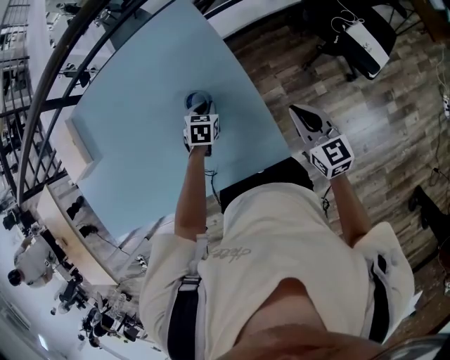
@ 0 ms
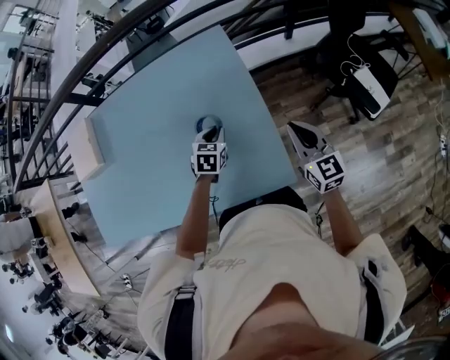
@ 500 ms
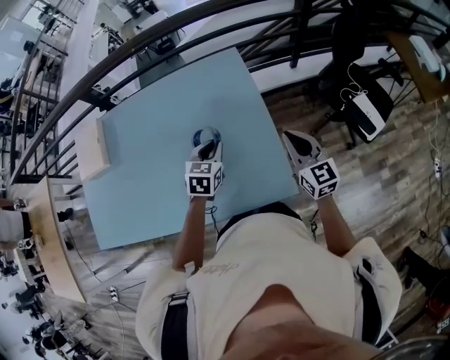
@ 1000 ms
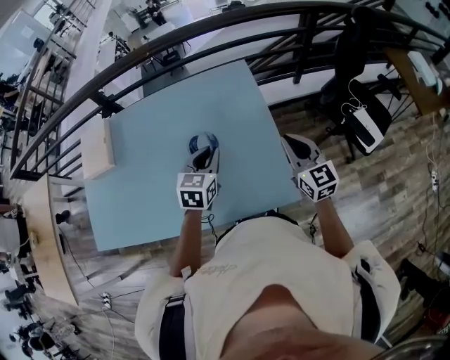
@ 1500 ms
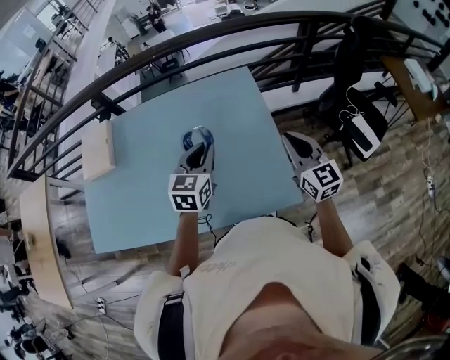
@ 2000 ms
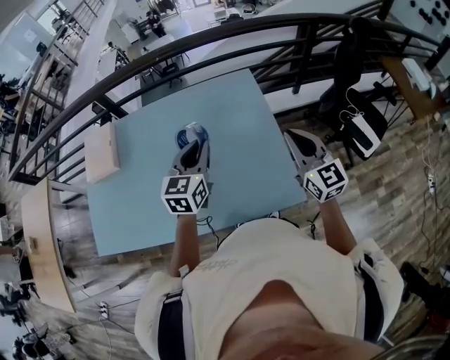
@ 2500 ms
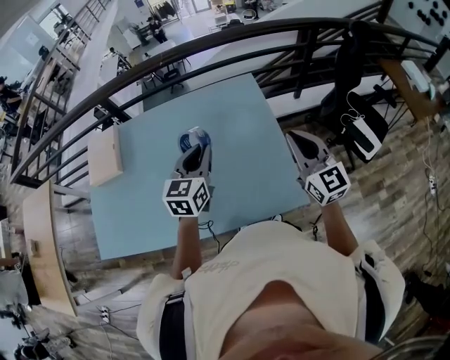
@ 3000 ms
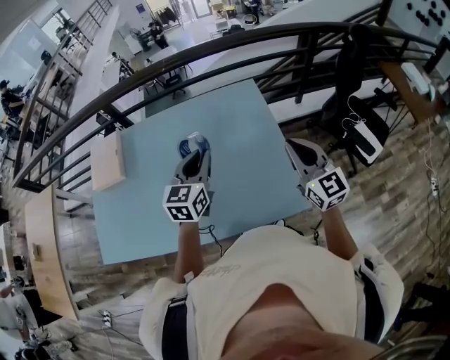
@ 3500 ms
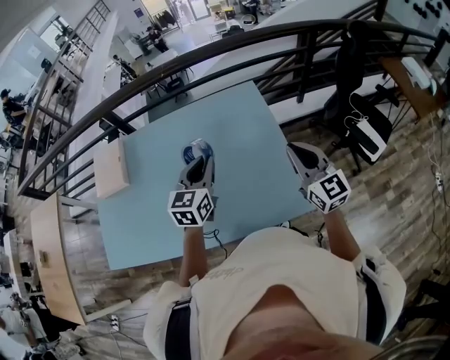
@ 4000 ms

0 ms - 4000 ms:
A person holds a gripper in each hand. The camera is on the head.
0 ms - 2000 ms: The left gripper moves upward and to the left, about 35 cm, and tips its fingers upward by roughly 40 degrees; the right gripper is displaced upward and to the left by approximately 20 cm, and turns by about 20 degrees.
2000 ms - 4000 ms: The grippers move only a little.

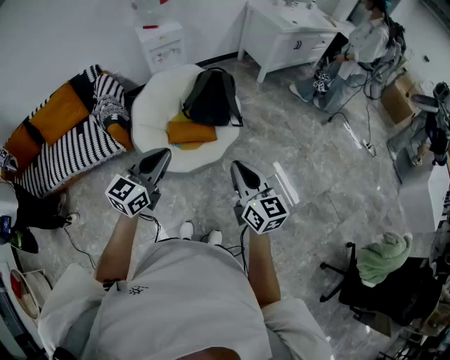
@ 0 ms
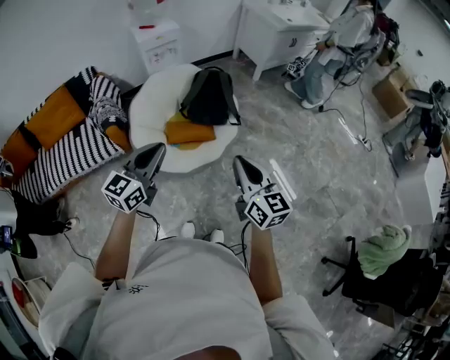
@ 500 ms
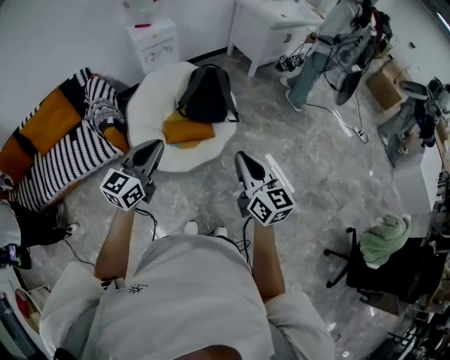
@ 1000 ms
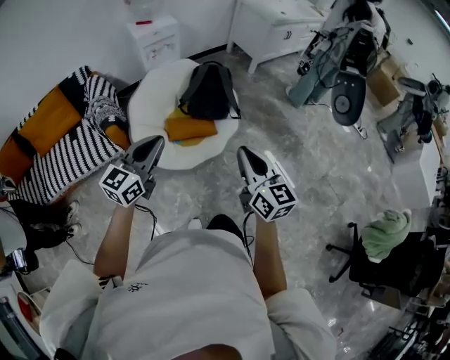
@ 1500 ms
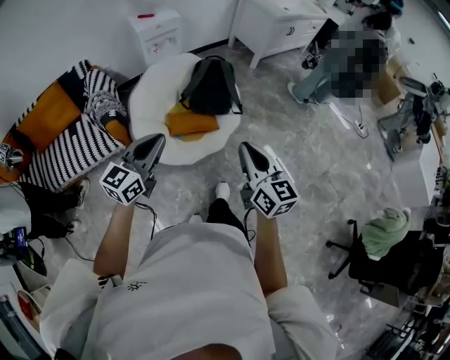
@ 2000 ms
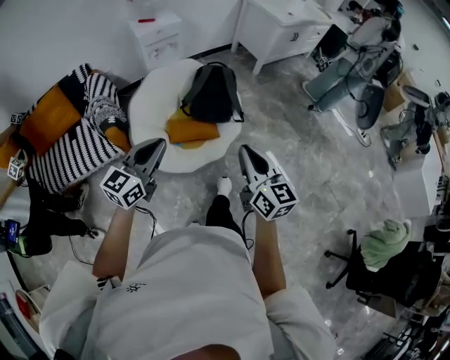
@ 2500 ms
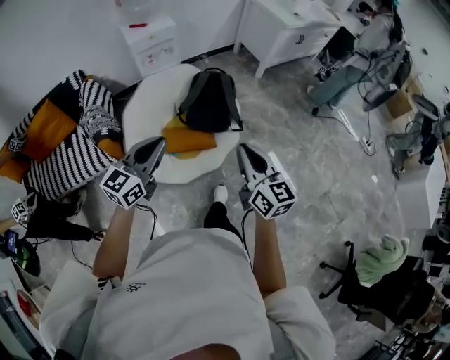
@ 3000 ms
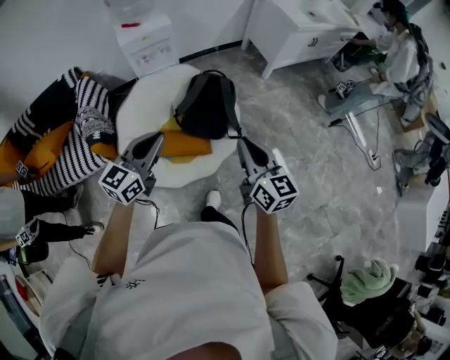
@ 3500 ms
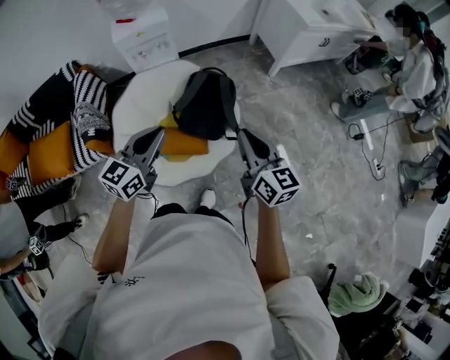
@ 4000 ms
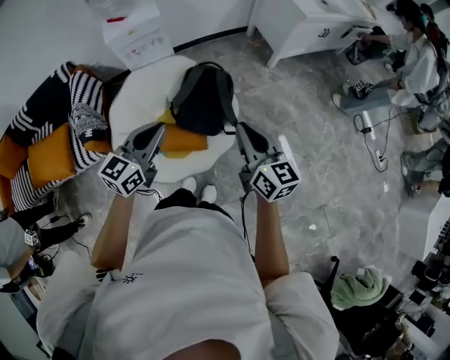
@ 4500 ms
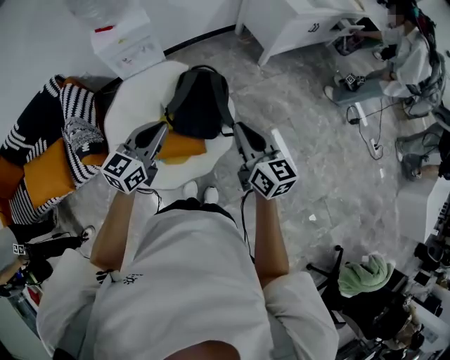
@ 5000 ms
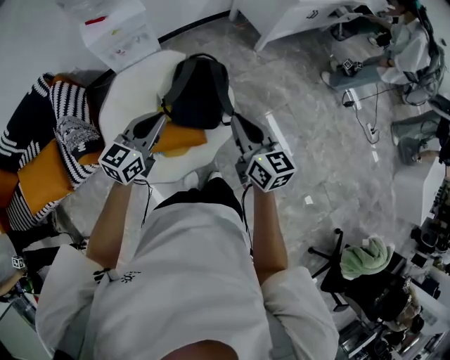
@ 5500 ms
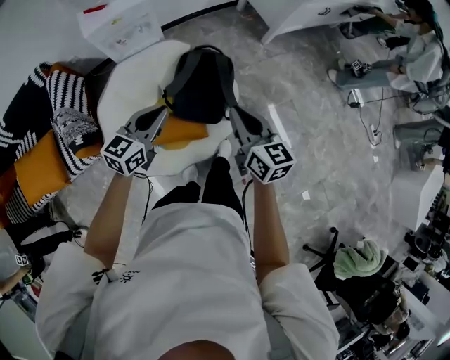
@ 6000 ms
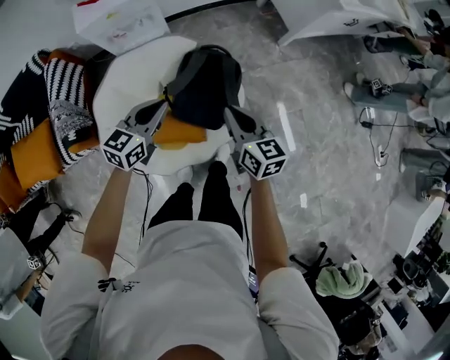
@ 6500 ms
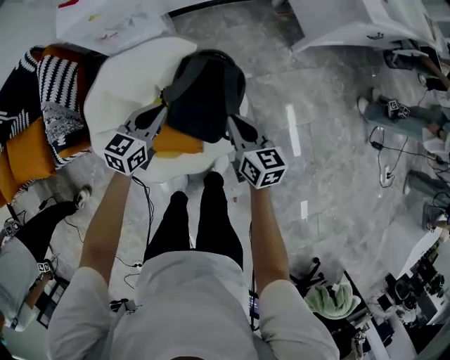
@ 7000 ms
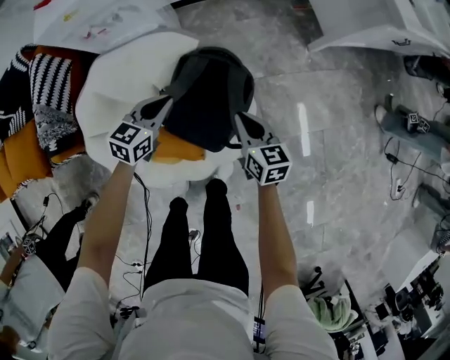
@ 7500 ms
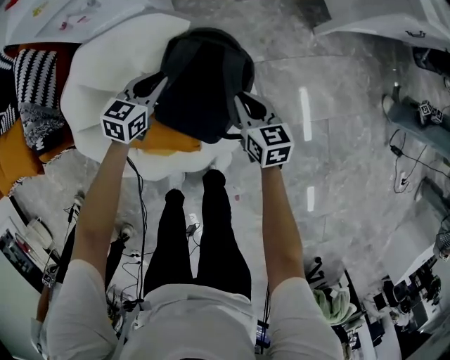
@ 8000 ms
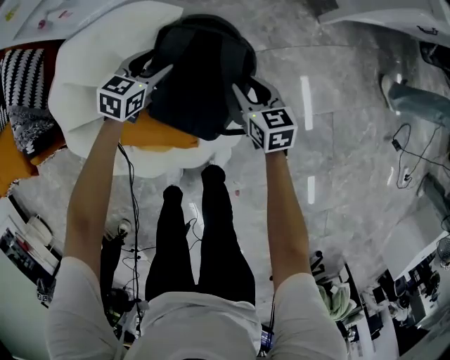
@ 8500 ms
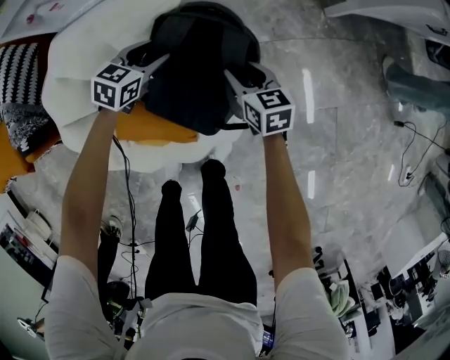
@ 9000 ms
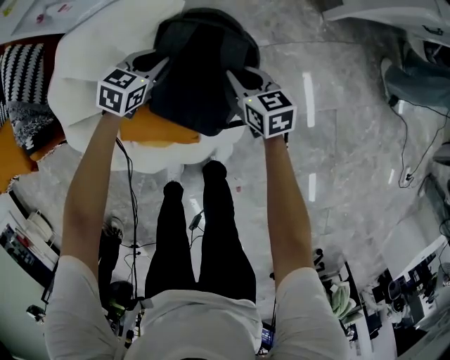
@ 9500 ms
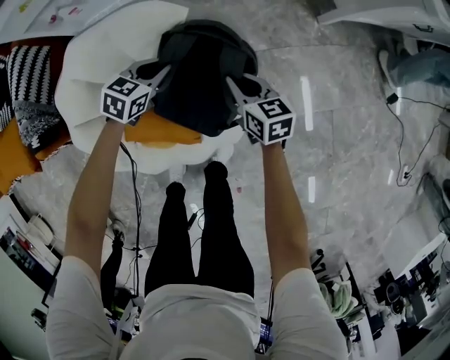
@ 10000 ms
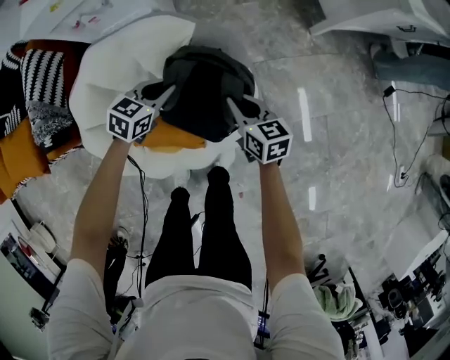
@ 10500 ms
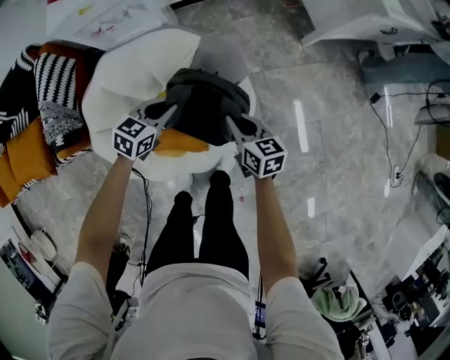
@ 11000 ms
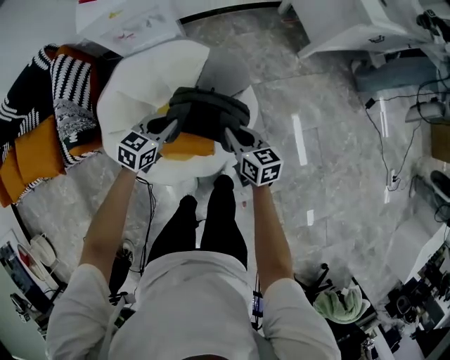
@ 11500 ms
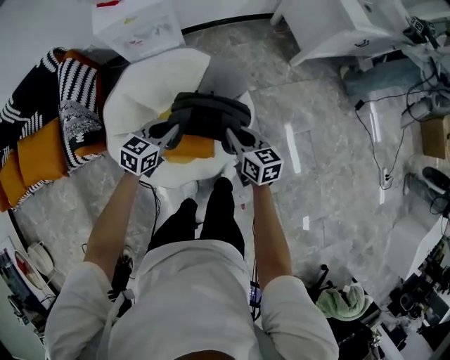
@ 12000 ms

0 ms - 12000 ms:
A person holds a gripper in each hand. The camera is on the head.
0 ms - 2000 ms: The two grippers go some 10 cm to the left.
2000 ms - 4000 ms: The pair of grippers is taken forward, about 40 cm.
4000 ms - 6000 ms: The right gripper moves forward, to the left and downward, about 15 cm, while the left gripper goes roughly 20 cm forward, downward and to the left.
6000 ms - 8000 ms: The grippers both shift downward and forward by some 50 cm. The right gripper turns by approximately 20 degrees. The left gripper changes its angle by some 20 degrees.
8000 ms - 10000 ms: The left gripper opens, then closes again. The right gripper travels downward and back again, approximately 10 cm each way, and opens, then closes again.
10000 ms - 12000 ms: Both grippers travel together upward and backward, about 30 cm.

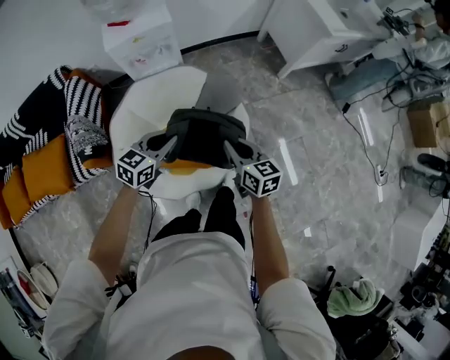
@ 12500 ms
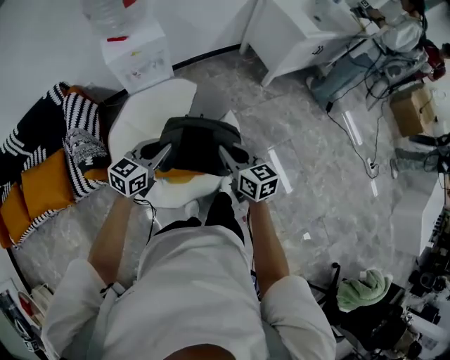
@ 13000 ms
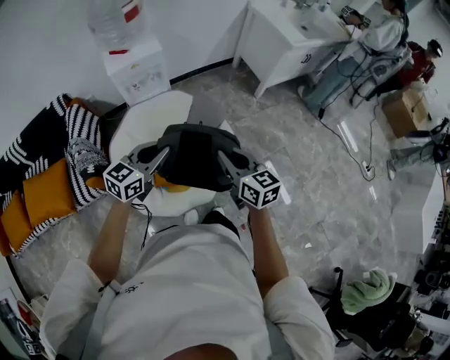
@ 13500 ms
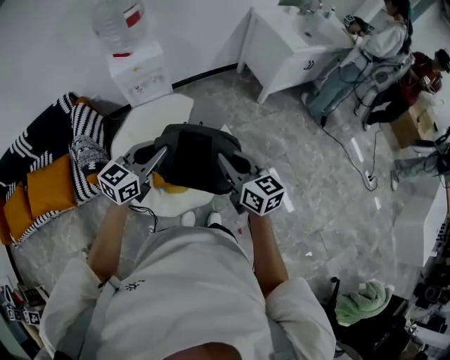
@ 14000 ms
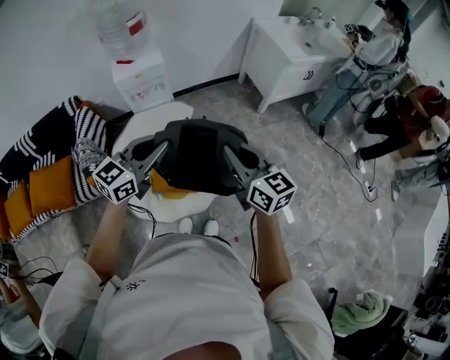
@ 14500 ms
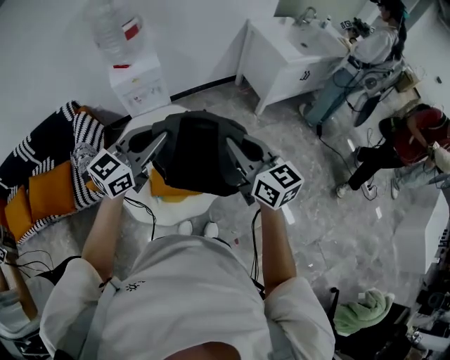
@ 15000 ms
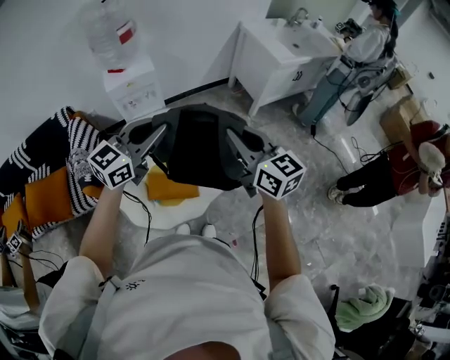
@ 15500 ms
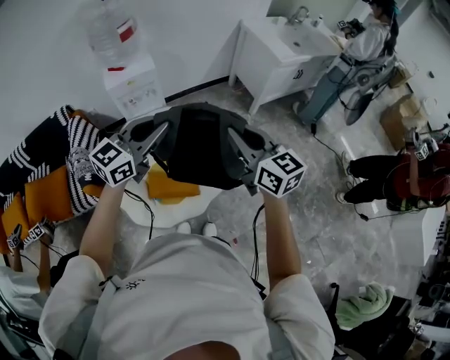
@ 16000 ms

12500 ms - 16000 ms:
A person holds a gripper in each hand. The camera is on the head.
12500 ms - 14500 ms: Both grippers travel together upward, about 25 cm. The left gripper turns by about 20 degrees. Meanwhile the right gripper swivels roughly 20 degrees.
14500 ms - 16000 ms: The right gripper changes place by about 5 cm, while the left gripper is displaced forward by approximately 5 cm.

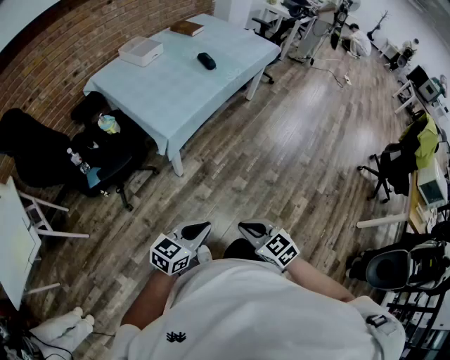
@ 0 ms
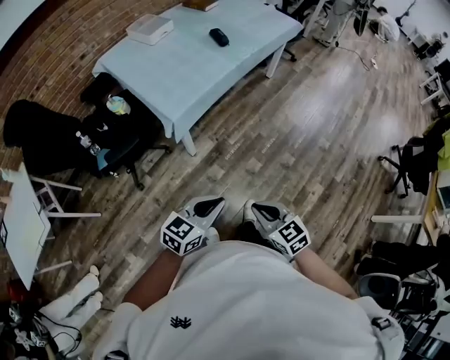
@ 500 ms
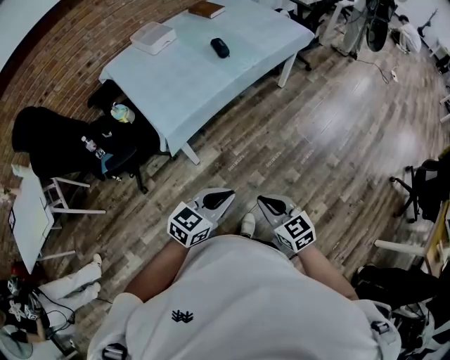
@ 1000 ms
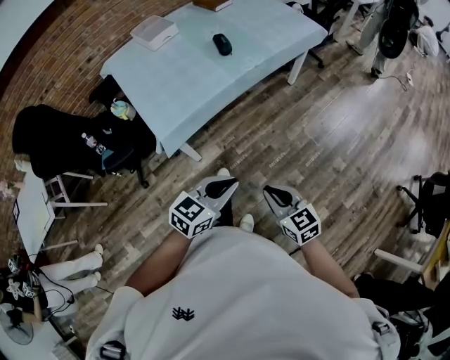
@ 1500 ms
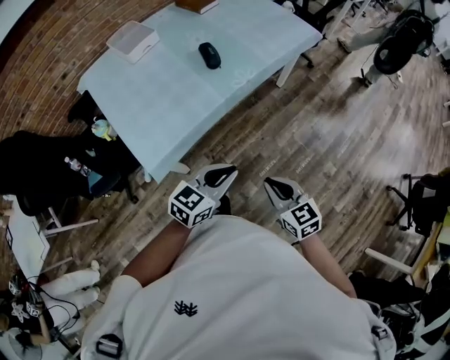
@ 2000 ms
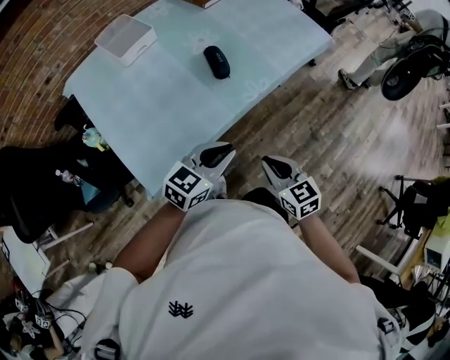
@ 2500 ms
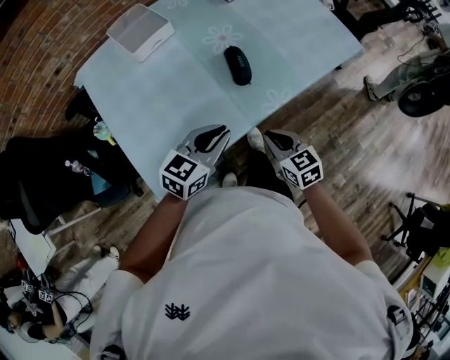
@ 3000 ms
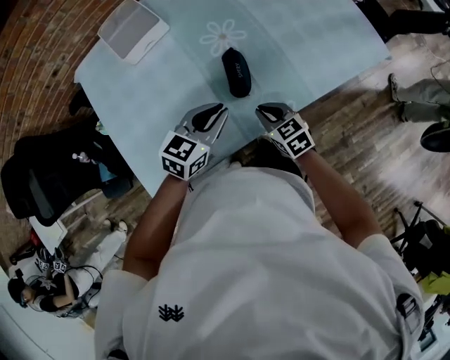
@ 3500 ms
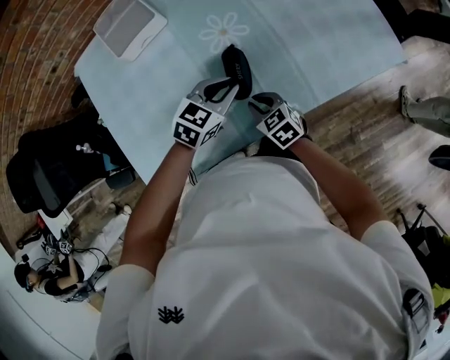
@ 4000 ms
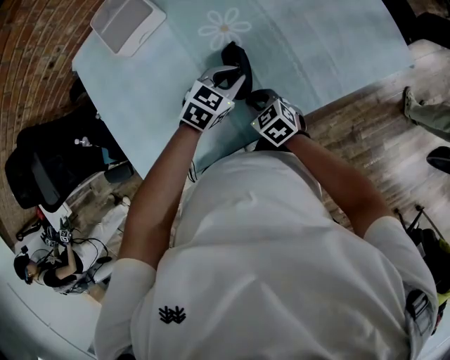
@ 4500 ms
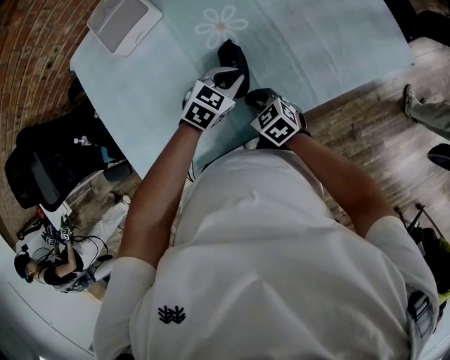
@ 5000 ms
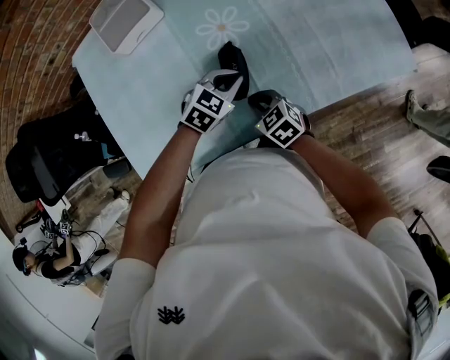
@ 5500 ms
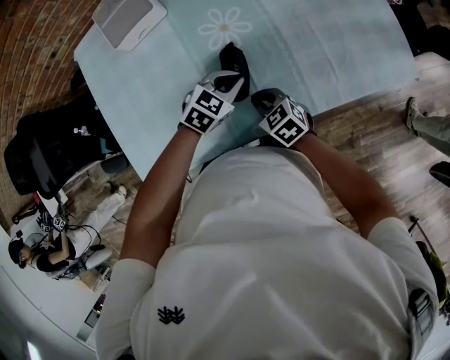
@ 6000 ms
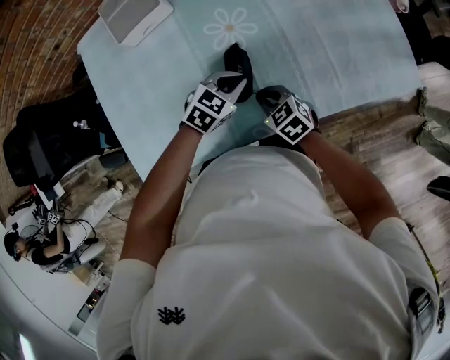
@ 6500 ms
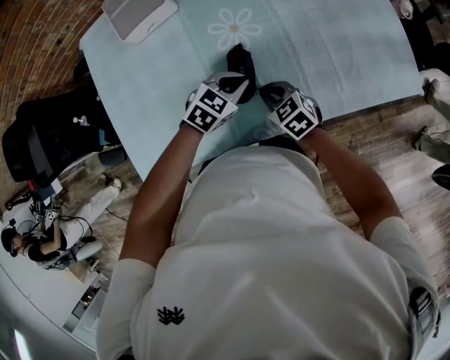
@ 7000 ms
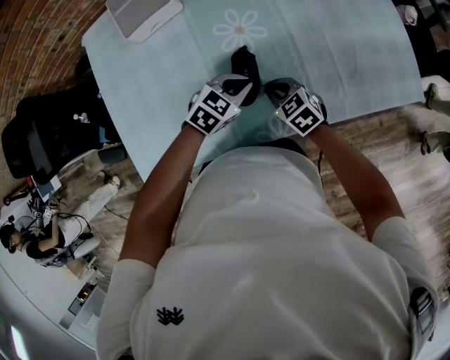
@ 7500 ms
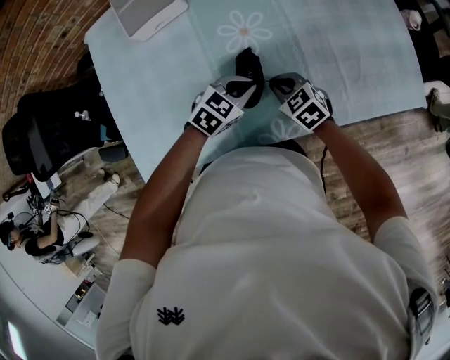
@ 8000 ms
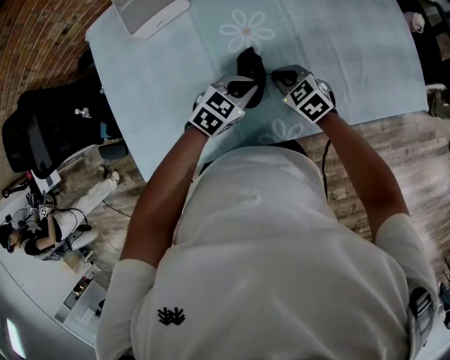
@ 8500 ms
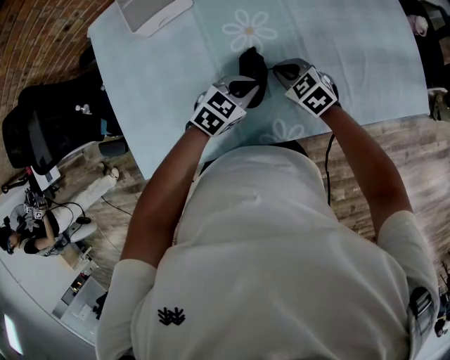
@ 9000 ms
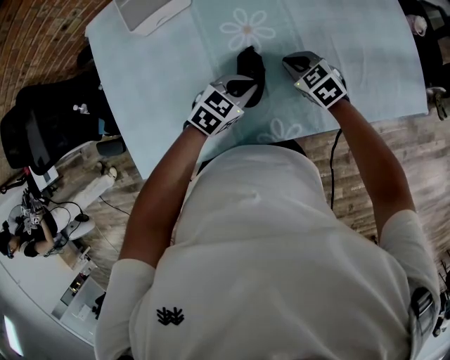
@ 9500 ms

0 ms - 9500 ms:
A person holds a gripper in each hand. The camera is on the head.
0 ms - 2000 ms: The two grippers travel together, forward and to the right, approximately 50 cm.
2000 ms - 4000 ms: The pair of grippers is taken forward, roughly 50 cm. The left gripper turns by some 20 degrees, while the right gripper turns by about 30 degrees.
4000 ms - 5500 ms: The left gripper is displaced downward by some 5 cm.
5500 ms - 7500 ms: The right gripper travels forward by some 5 cm.
7500 ms - 9500 ms: The right gripper travels forward by some 10 cm.
